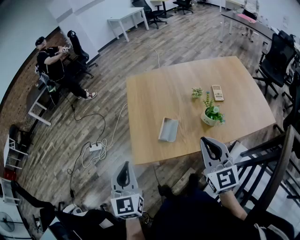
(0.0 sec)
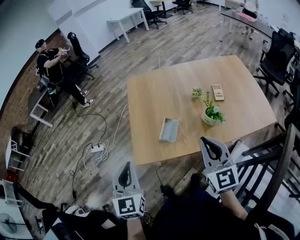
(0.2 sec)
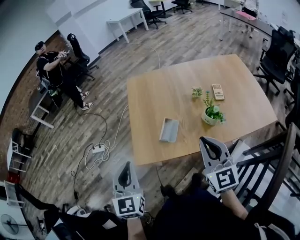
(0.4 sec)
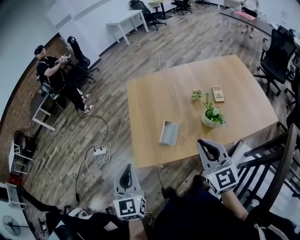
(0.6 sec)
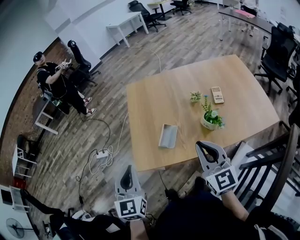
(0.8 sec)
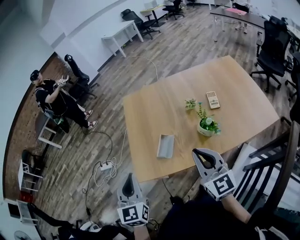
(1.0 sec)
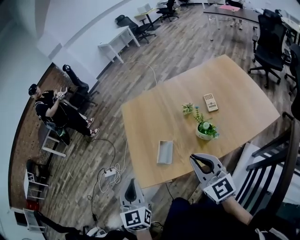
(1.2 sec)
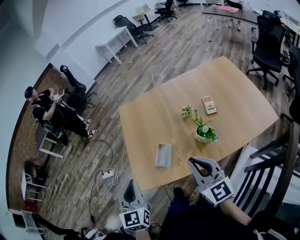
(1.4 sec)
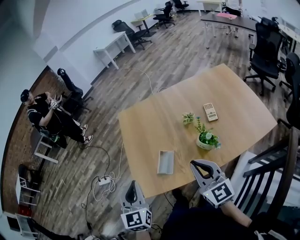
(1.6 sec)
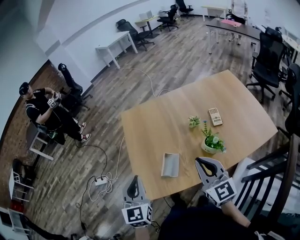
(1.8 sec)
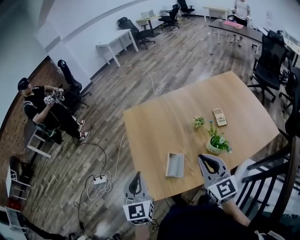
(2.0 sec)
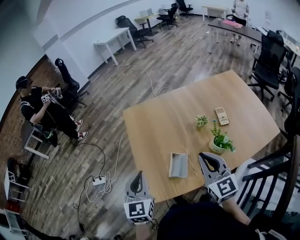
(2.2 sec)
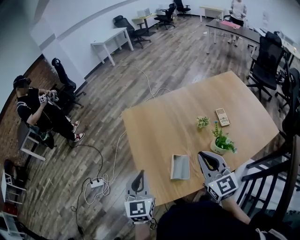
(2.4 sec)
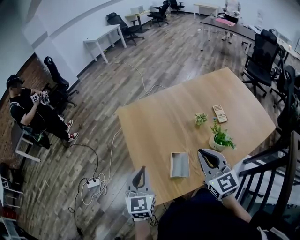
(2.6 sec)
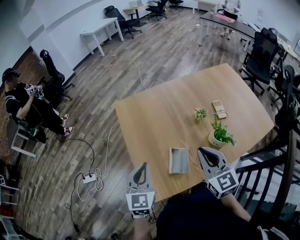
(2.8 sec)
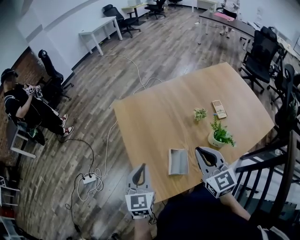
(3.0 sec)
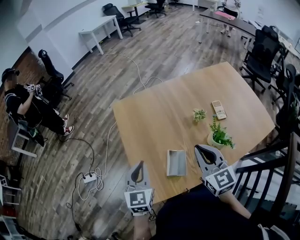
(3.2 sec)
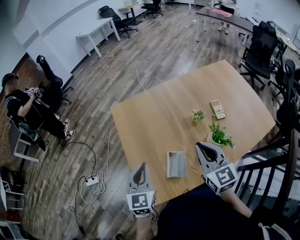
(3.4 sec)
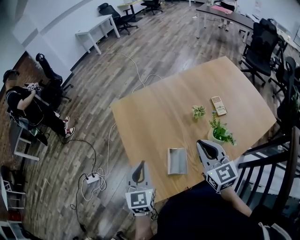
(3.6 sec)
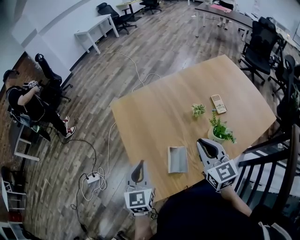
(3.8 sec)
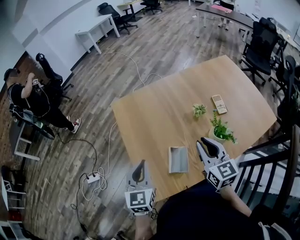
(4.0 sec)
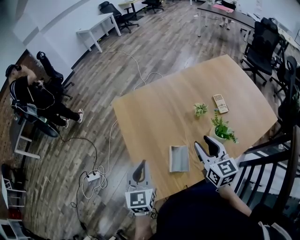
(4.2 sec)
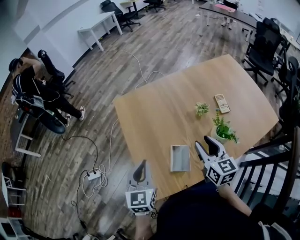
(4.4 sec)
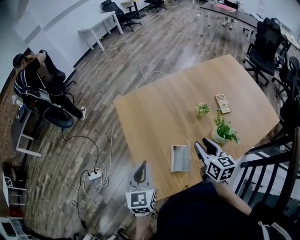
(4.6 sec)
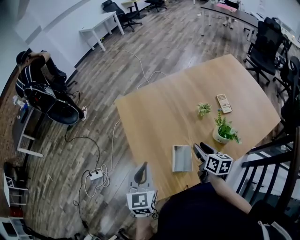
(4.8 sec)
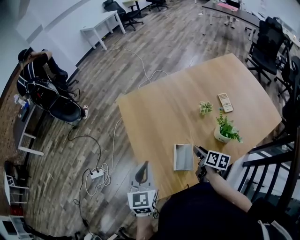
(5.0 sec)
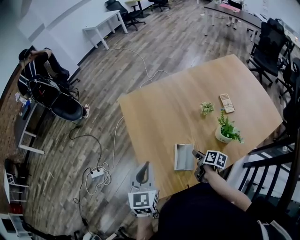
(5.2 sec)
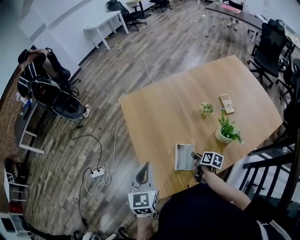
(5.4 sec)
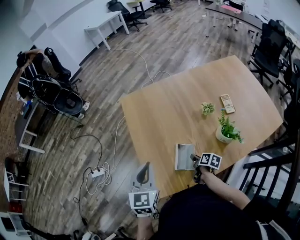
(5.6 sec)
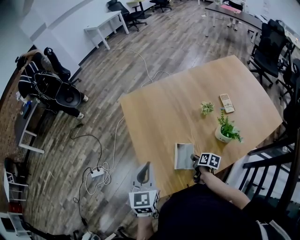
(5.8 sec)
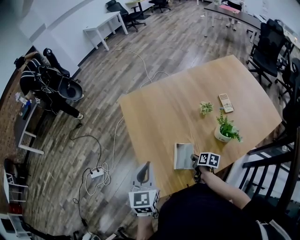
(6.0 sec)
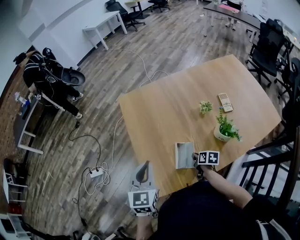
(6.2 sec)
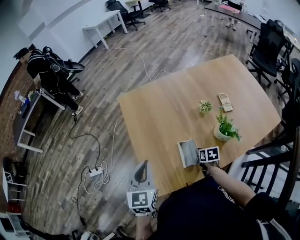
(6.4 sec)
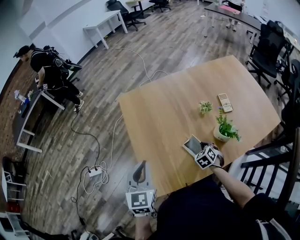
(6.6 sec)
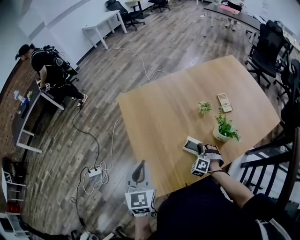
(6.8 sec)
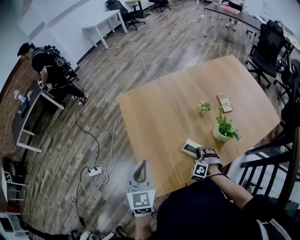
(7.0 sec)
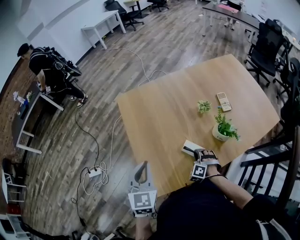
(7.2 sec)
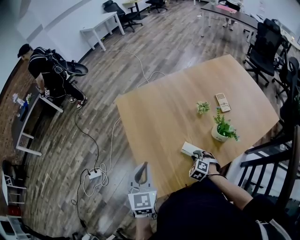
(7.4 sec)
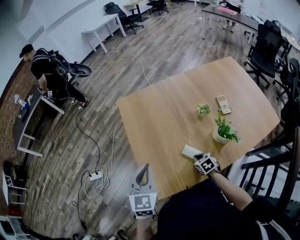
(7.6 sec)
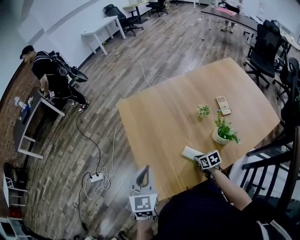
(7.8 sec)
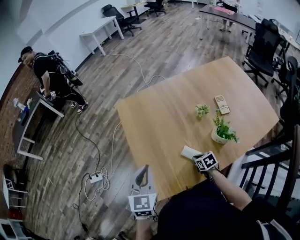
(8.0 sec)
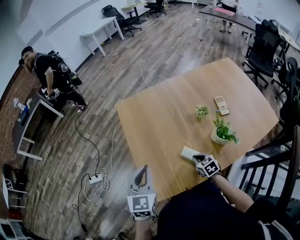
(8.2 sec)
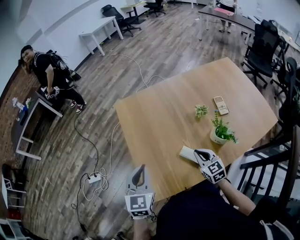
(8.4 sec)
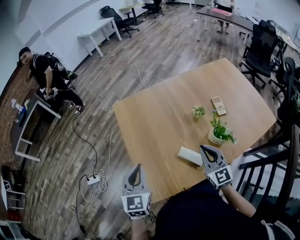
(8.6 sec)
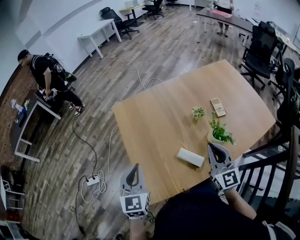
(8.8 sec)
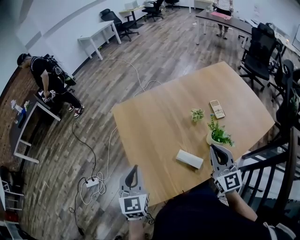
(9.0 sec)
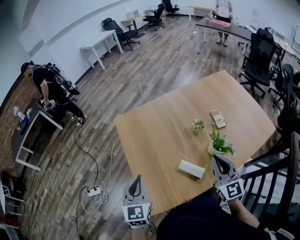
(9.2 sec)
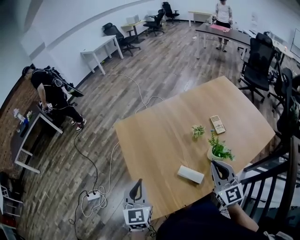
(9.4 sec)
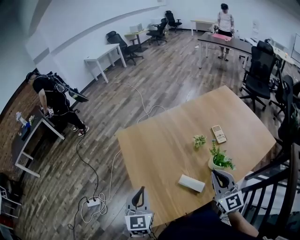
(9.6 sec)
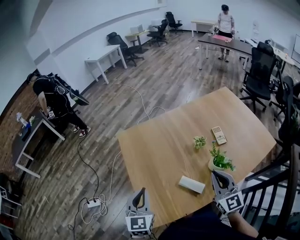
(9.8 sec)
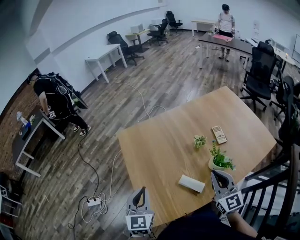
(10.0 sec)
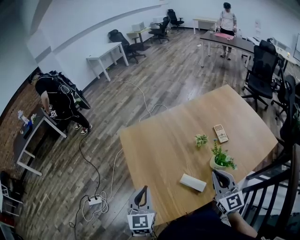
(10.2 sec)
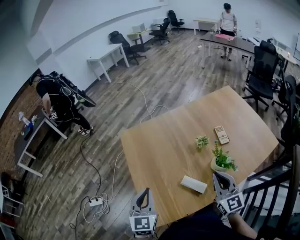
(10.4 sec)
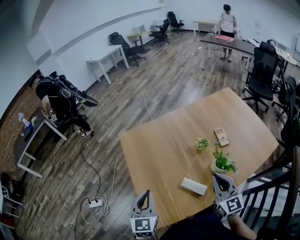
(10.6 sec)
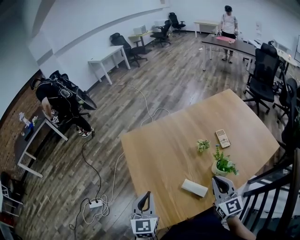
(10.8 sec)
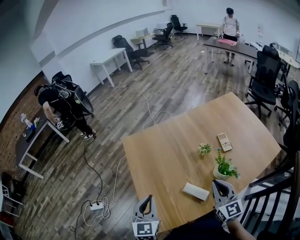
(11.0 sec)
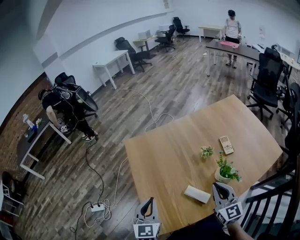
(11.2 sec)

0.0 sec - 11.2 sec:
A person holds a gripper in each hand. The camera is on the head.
0.0 sec - 1.6 sec: The right gripper heads forward, covering roughly 5 cm; the left gripper shifts some 15 cm forward and to the right.
1.6 sec - 3.2 sec: The right gripper heads forward and to the left, covering some 15 cm. The left gripper heads forward, covering approximately 15 cm.
3.2 sec - 4.8 sec: The right gripper moves downward, some 15 cm, rolls clockwise, seen from behind, by approximately 40 degrees, and opens up.
4.8 sec - 6.4 sec: The right gripper heads downward, covering some 15 cm, rotates some 30 degrees, and closes up.
6.4 sec - 8.0 sec: The right gripper changes its angle by approximately 20 degrees.
8.0 sec - 9.6 sec: The right gripper travels upward by about 30 cm, and tilts its fingers some 50 degrees upward.
9.6 sec - 11.2 sec: There are only small adjustments of the grippers.

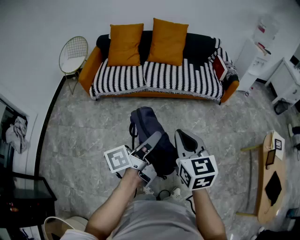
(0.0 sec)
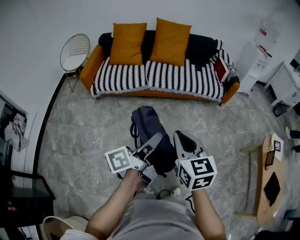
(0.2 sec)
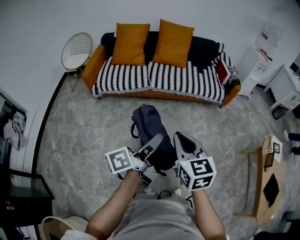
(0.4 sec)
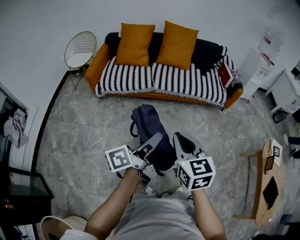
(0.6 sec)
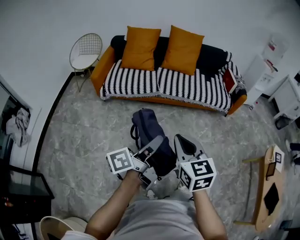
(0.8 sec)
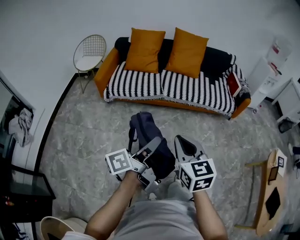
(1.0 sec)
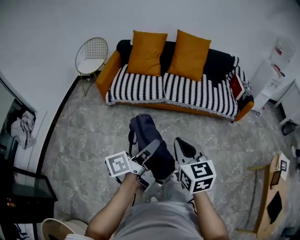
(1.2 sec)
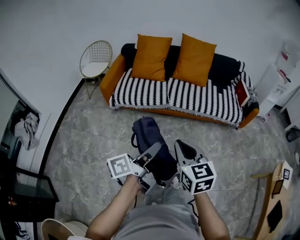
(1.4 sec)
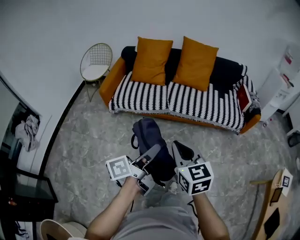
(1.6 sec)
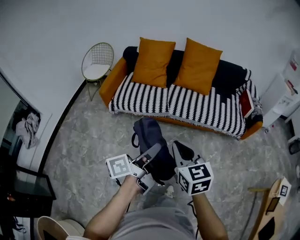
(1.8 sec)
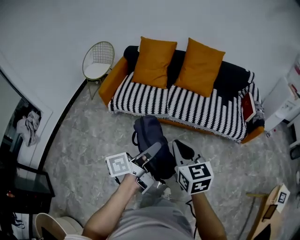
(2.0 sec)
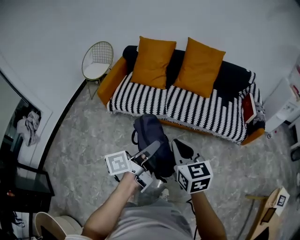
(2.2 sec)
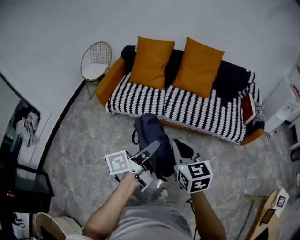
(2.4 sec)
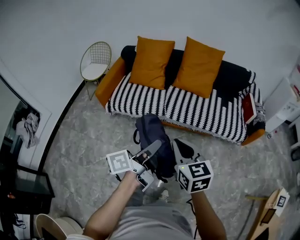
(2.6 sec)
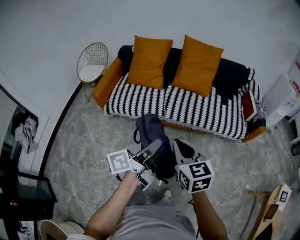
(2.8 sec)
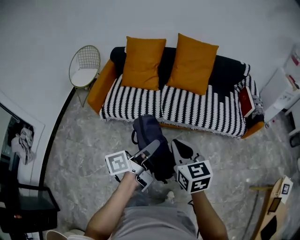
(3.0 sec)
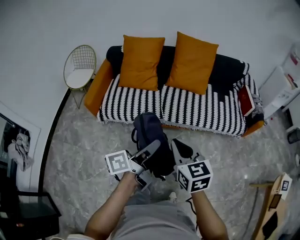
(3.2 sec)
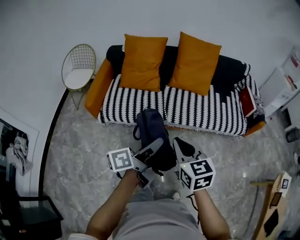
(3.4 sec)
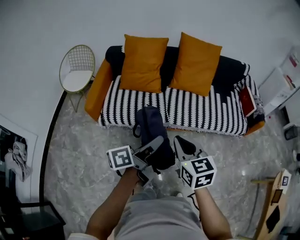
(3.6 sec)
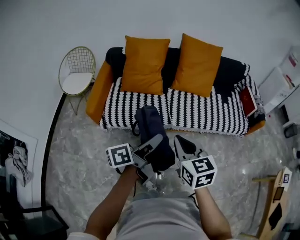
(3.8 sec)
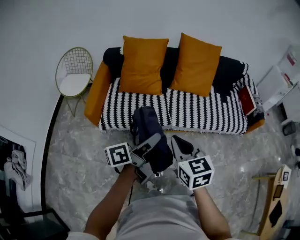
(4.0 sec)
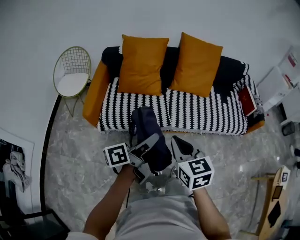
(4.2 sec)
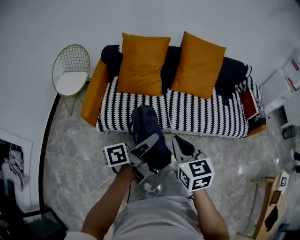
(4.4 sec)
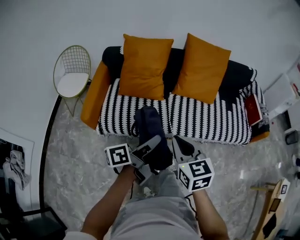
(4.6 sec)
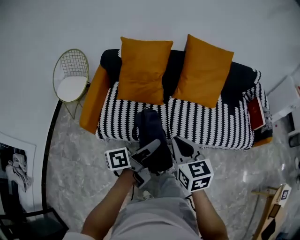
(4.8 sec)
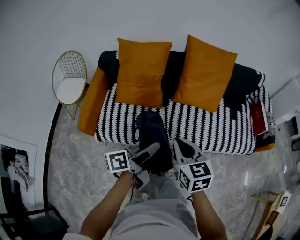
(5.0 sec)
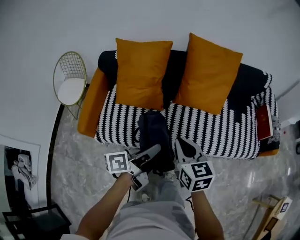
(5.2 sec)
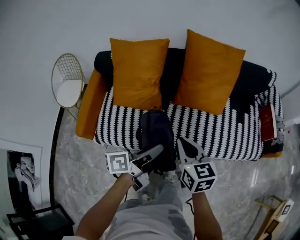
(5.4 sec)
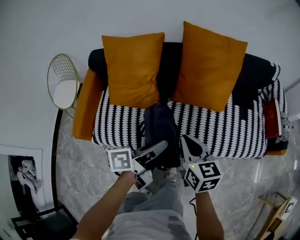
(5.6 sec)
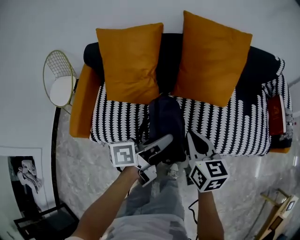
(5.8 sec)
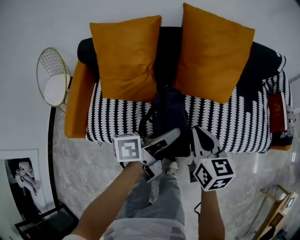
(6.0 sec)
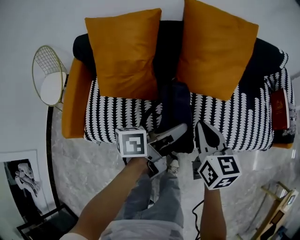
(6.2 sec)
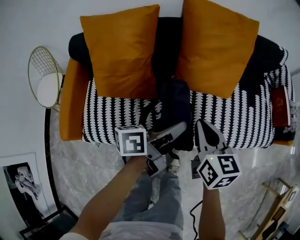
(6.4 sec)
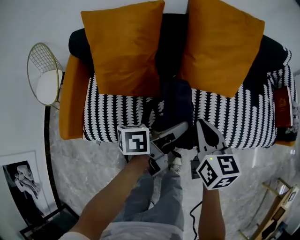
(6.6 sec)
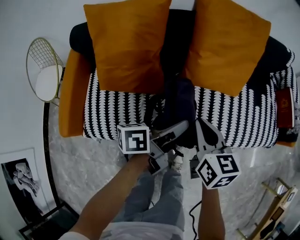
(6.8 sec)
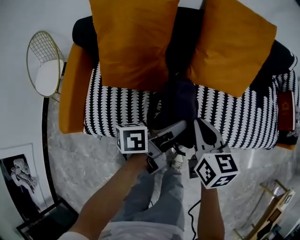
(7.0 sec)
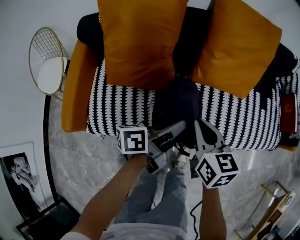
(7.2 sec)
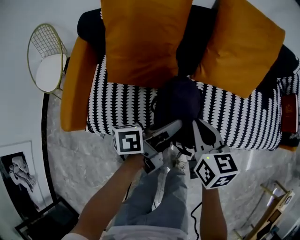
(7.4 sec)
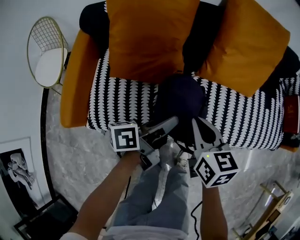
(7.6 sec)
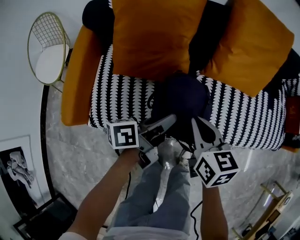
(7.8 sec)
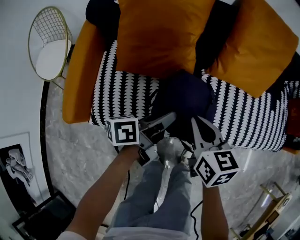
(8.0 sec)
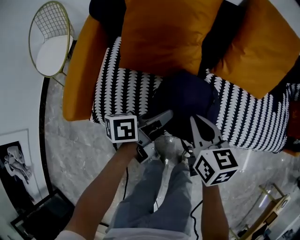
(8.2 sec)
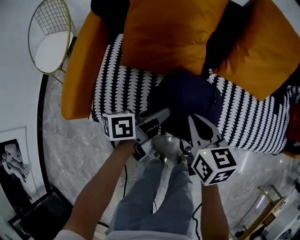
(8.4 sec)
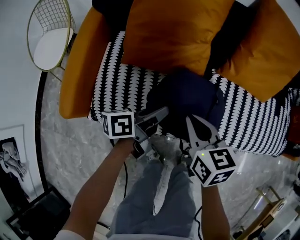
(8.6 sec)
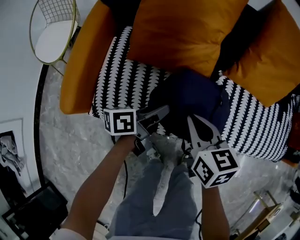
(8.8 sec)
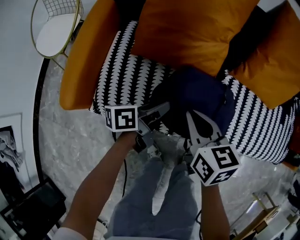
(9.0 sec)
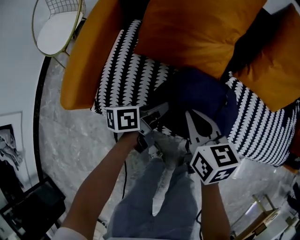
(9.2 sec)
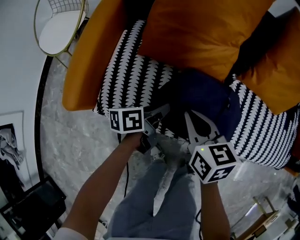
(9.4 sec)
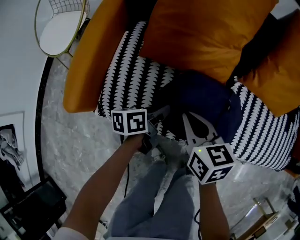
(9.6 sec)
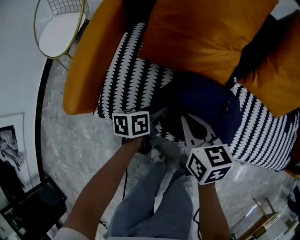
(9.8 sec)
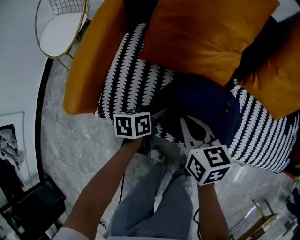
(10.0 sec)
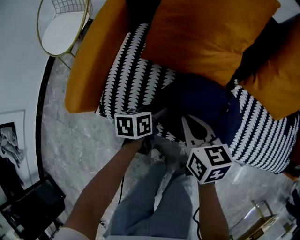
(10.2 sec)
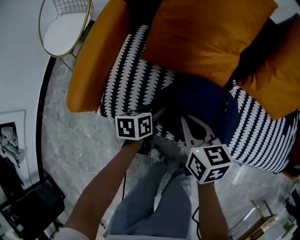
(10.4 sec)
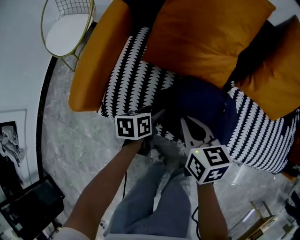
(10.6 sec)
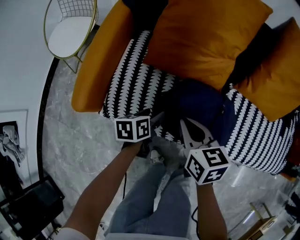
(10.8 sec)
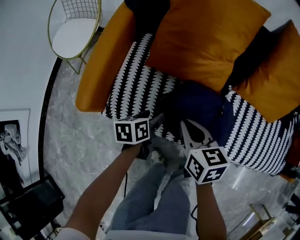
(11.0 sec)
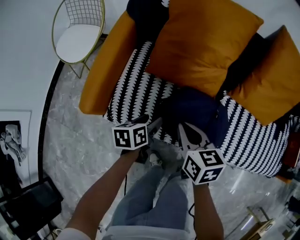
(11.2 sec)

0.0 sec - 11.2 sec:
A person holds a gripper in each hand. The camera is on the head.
0.0 sec - 1.6 sec: Both grippers travel together to the left and forward, approximately 15 cm.
1.6 sec - 3.2 sec: Both grippers travel together forward, about 20 cm.
3.2 sec - 4.8 sec: Both grippers move forward and to the left, some 25 cm.
4.8 sec - 6.4 sec: Both grippers move forward and downward, about 30 cm. The right gripper swivels roughly 20 degrees.
6.4 sec - 8.0 sec: The two grippers go about 20 cm to the left and downward.
8.0 sec - 9.6 sec: The left gripper travels downward and to the left by roughly 20 cm. The right gripper goes about 15 cm to the left and downward.
9.6 sec - 11.2 sec: The right gripper shifts about 5 cm upward; the left gripper heads upward and to the left, covering roughly 10 cm, turns by roughly 20 degrees, and opens its fingers.

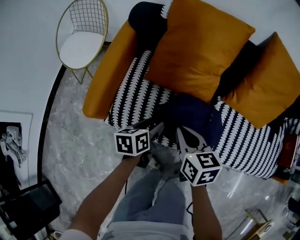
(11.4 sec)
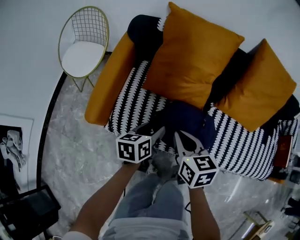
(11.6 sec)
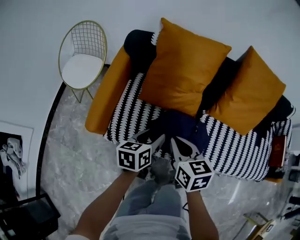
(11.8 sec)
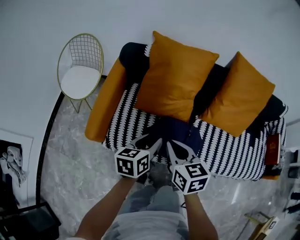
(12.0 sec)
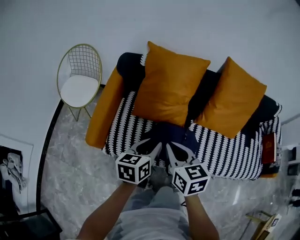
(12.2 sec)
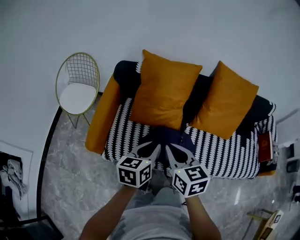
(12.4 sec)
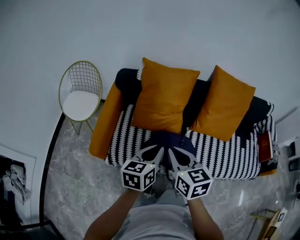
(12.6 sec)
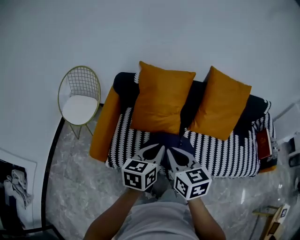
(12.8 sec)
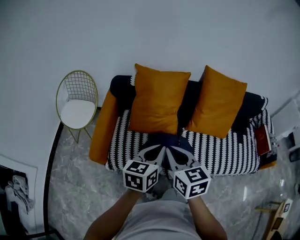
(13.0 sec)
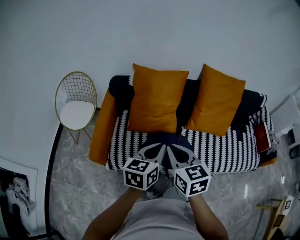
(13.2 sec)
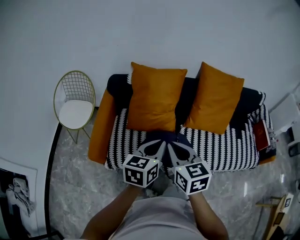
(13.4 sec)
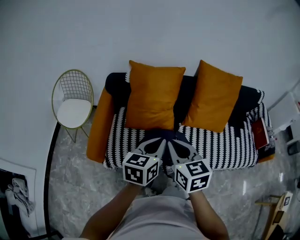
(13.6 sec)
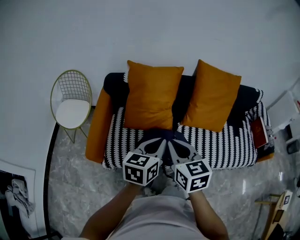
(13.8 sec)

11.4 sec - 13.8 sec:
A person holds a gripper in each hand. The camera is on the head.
11.4 sec - 12.6 sec: The grippers both shift upward by some 25 cm. The left gripper changes its angle by about 30 degrees, and closes up.
12.6 sec - 13.8 sec: The left gripper shifts by roughly 5 cm.
